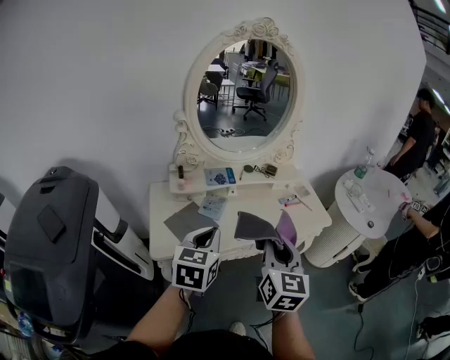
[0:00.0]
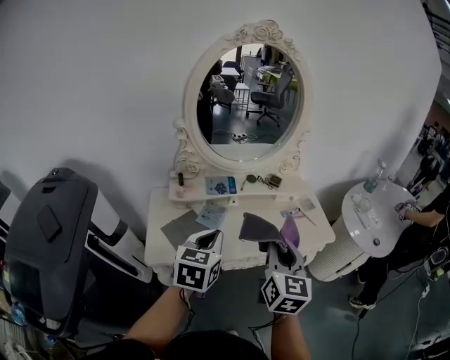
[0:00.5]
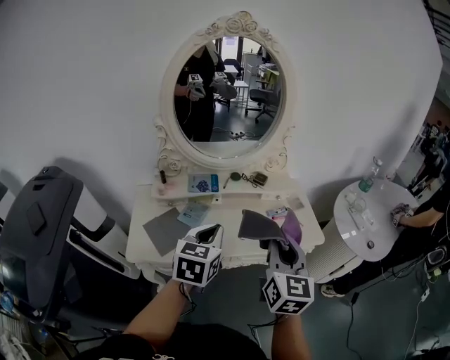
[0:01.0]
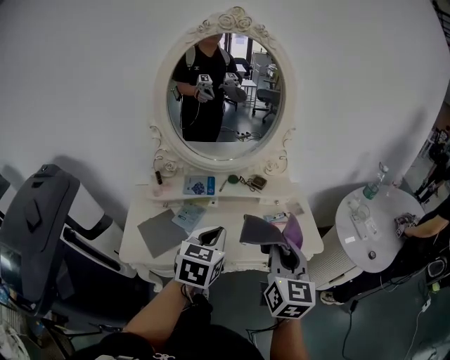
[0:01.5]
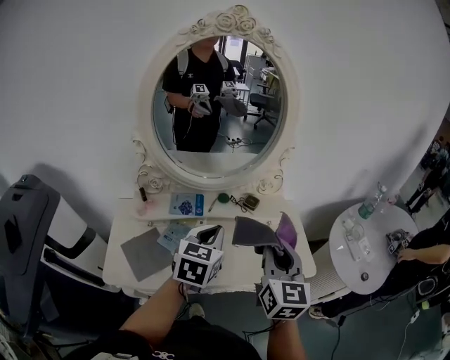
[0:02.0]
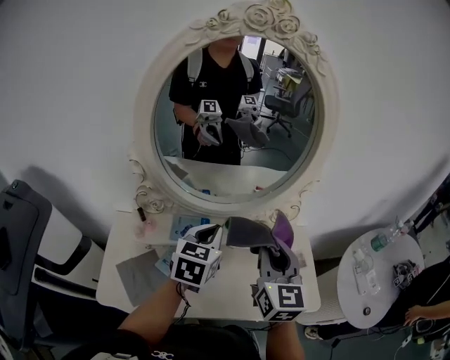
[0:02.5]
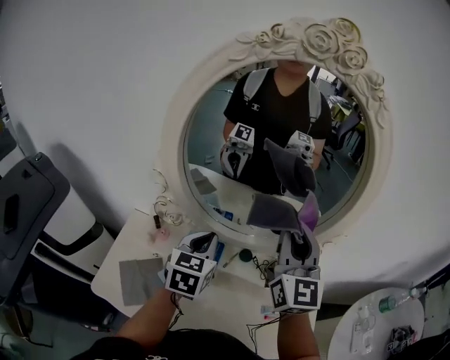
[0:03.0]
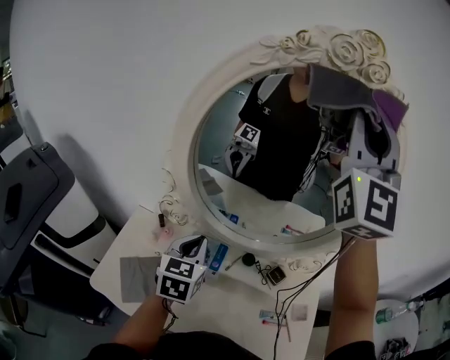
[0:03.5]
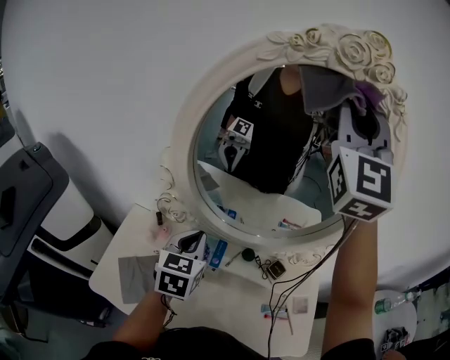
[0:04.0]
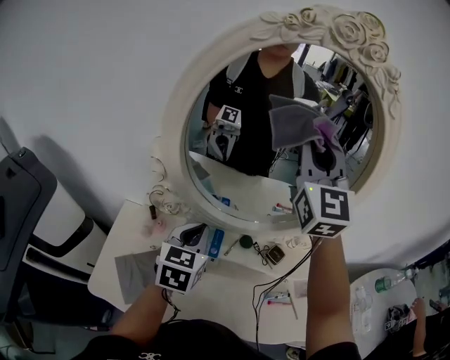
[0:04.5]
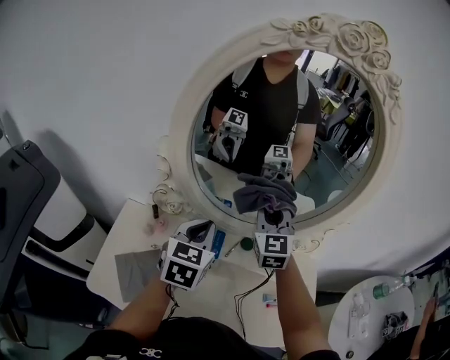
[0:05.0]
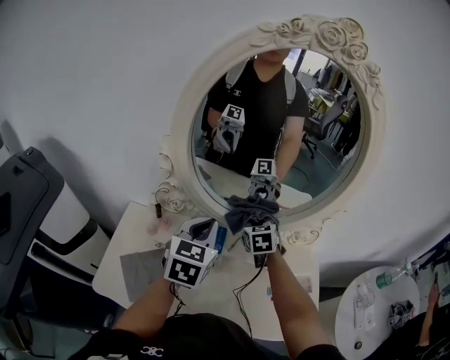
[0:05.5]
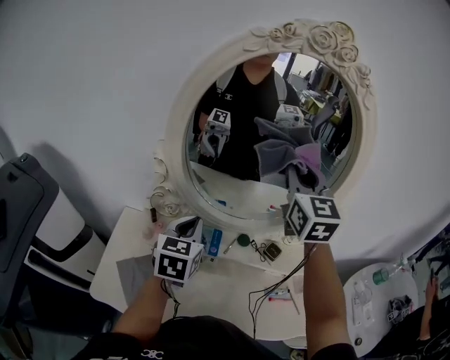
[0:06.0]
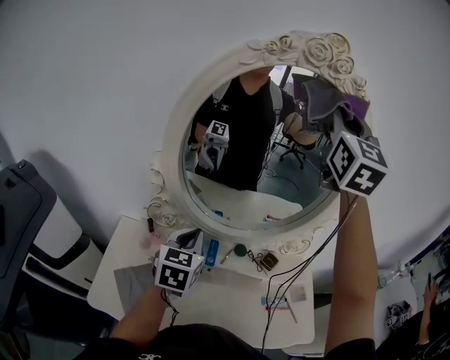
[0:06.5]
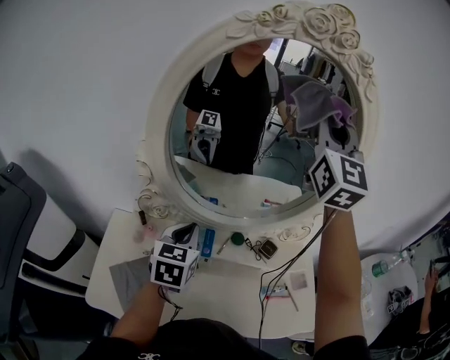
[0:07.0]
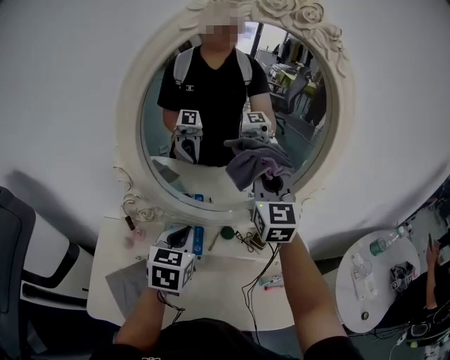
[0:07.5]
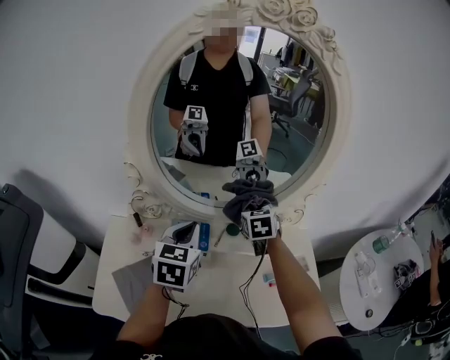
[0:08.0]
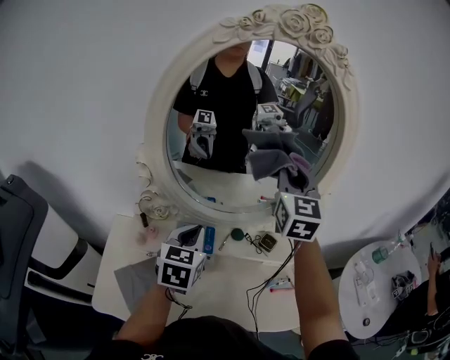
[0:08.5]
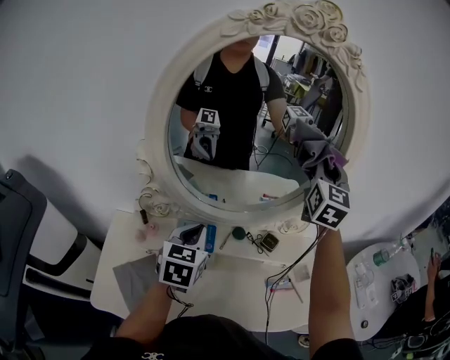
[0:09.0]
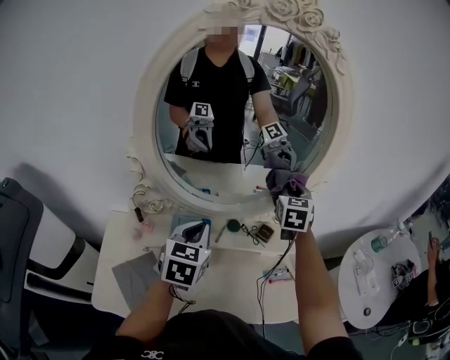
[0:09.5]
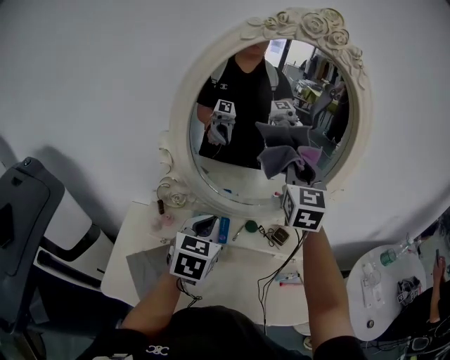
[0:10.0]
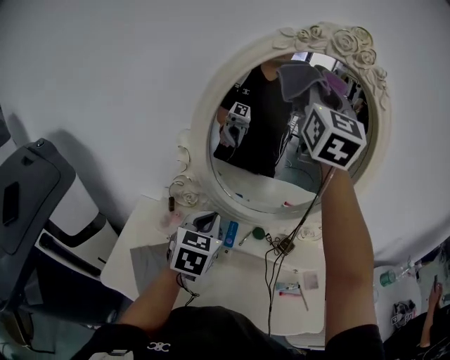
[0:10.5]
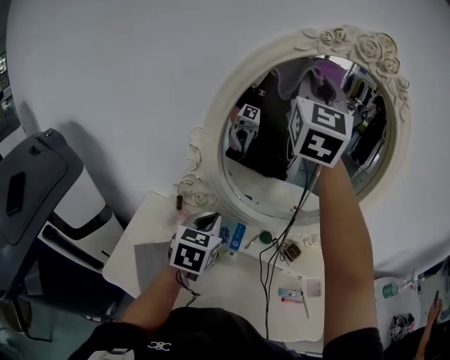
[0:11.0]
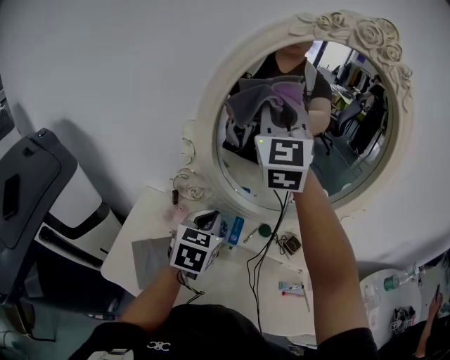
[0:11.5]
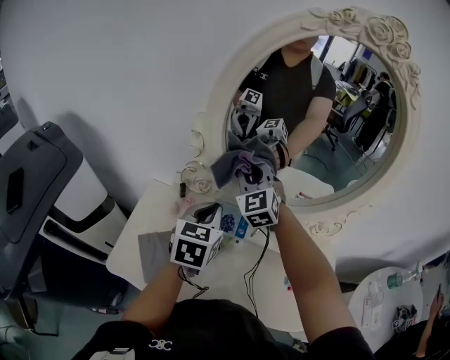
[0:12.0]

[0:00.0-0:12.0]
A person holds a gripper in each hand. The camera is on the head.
0:00.0 to 0:02.0: Both grippers travel together forward and to the right, about 25 cm.
0:02.0 to 0:04.0: The right gripper shifts approximately 35 cm upward, and rotates approximately 50 degrees; the left gripper shifts by roughly 25 cm, and swivels approximately 30 degrees.
0:04.0 to 0:06.0: The right gripper heads downward, covering some 20 cm, and turns by about 30 degrees.
0:06.0 to 0:08.0: The right gripper moves downward, some 30 cm, and angles its fingers downward, by approximately 40 degrees. The left gripper ends up about 5 cm from where it was.
0:08.0 to 0:10.0: The right gripper moves up and down over about 30 cm, changing direction 2 times, and tips its fingers upward by some 30 degrees.
0:10.0 to 0:12.0: The left gripper travels to the left by roughly 5 cm, while the right gripper heads to the left and downward, covering about 25 cm, and rotates about 40 degrees.

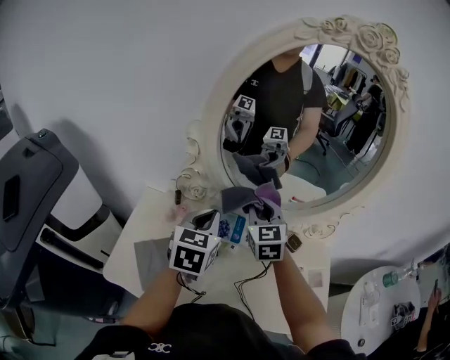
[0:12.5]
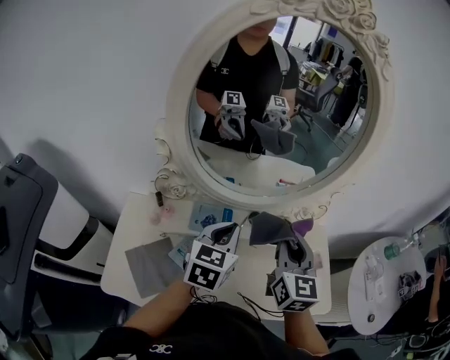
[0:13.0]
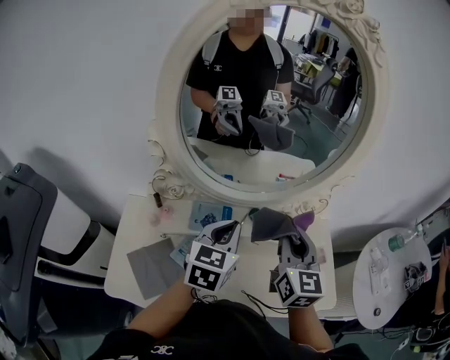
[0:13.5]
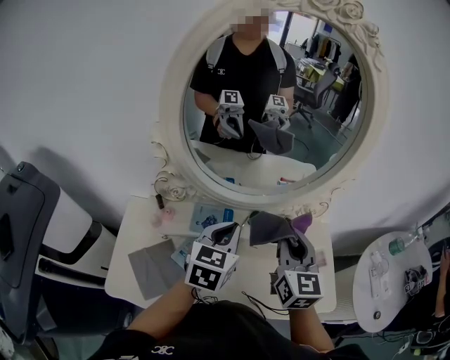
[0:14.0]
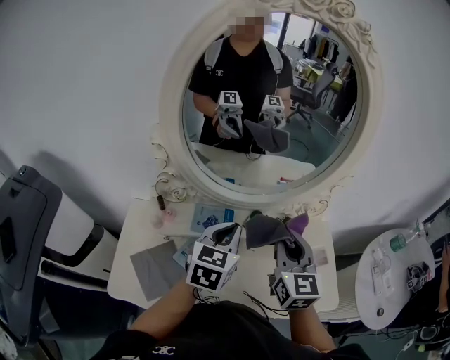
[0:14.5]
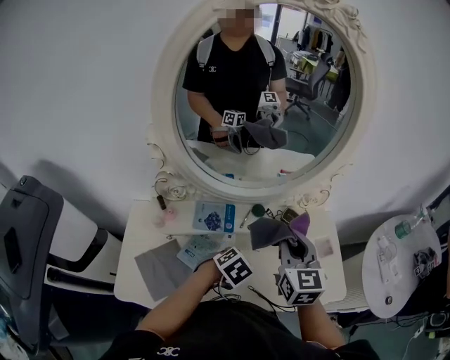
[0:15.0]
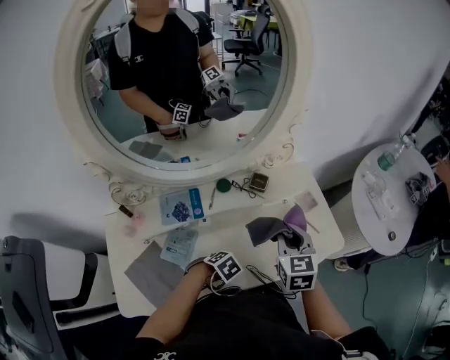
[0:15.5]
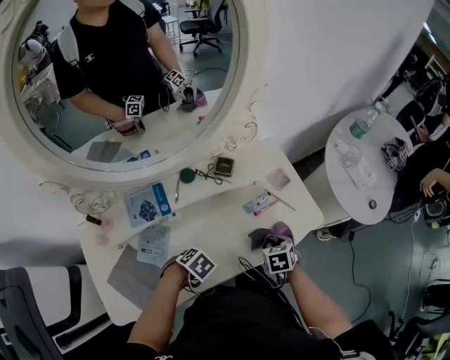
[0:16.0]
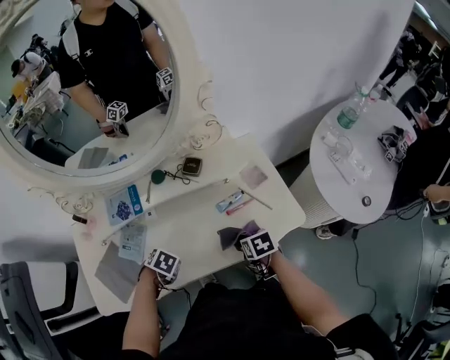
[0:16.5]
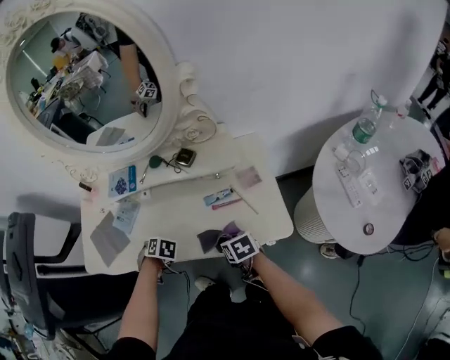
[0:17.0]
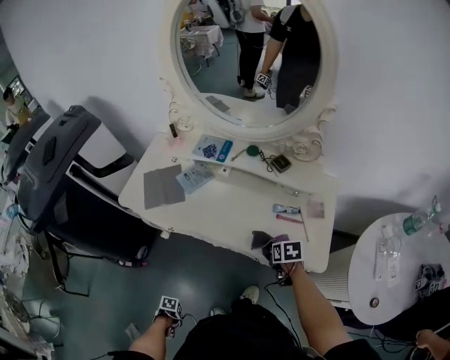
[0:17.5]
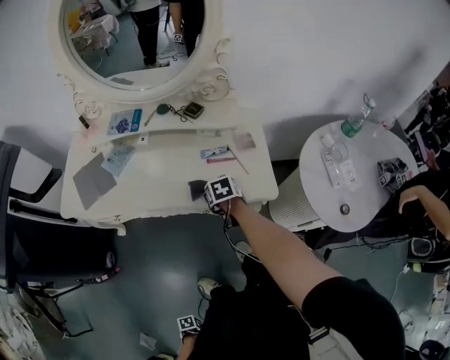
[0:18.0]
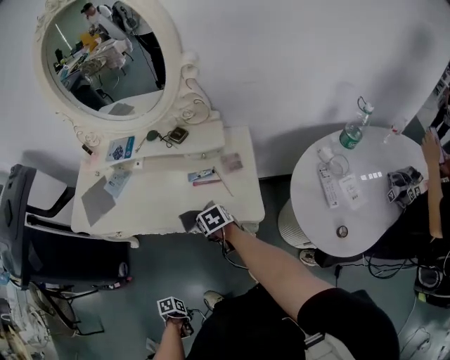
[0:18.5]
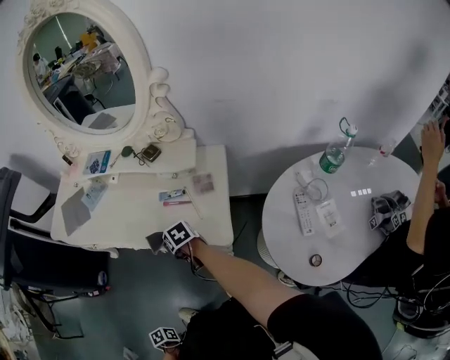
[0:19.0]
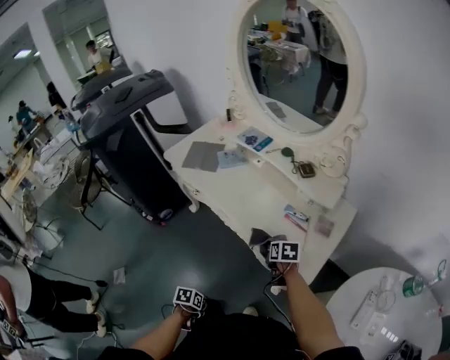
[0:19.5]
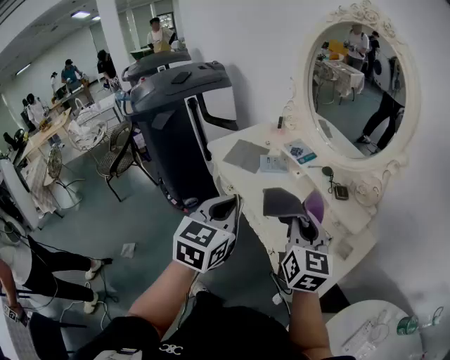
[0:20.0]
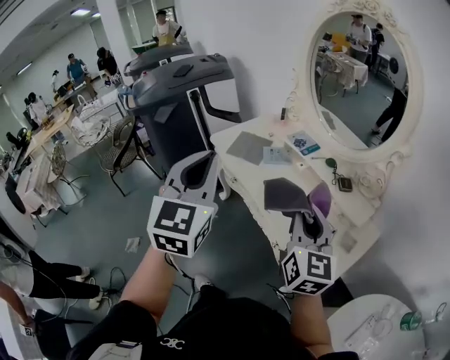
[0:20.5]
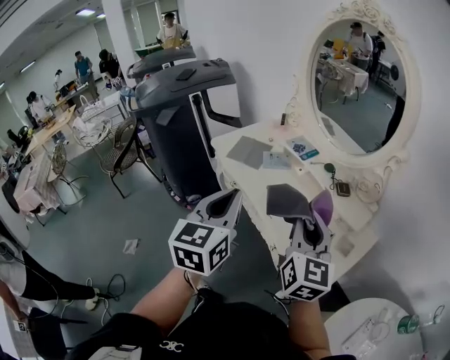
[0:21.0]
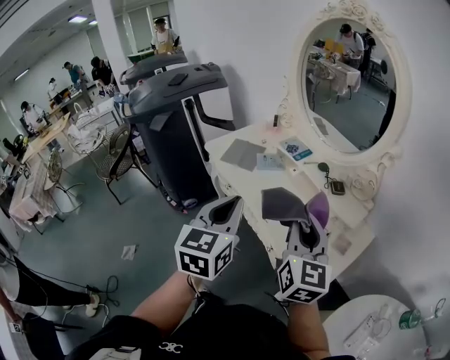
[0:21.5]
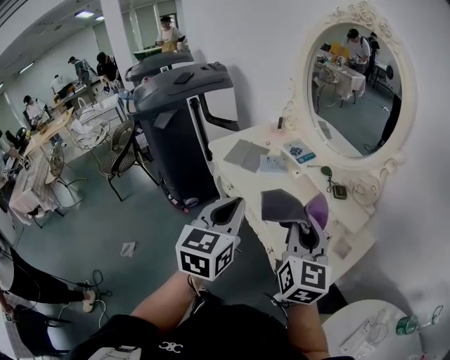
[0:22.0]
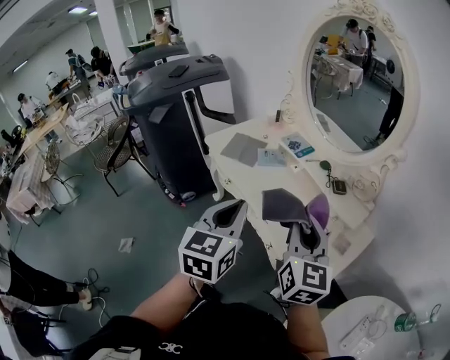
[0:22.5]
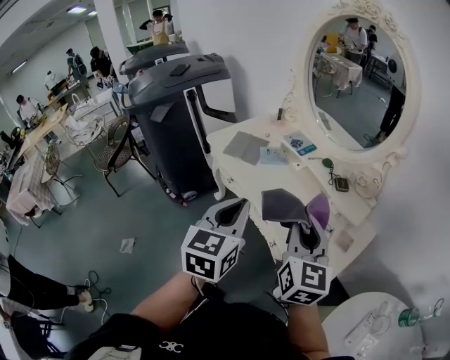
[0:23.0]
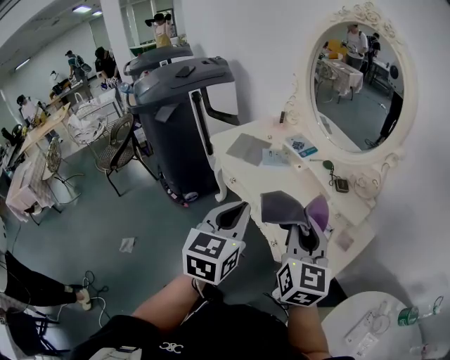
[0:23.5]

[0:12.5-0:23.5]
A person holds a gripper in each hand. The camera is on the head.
0:12.5 to 0:14.5: The left gripper travels to the right by approximately 10 cm; the right gripper is displaced to the right and backward by some 20 cm, and changes its angle by about 20 degrees.
0:14.5 to 0:16.0: The two grippers go approximately 30 cm downward. The left gripper tilts its fingers approximately 60 degrees downward, while the right gripper tips its fingers downward by roughly 60 degrees.
0:16.0 to 0:18.0: The left gripper moves about 70 cm, and rolls counterclockwise, seen from behind, by about 90 degrees, while the right gripper changes its angle by about 30 degrees.
0:18.0 to 0:20.0: The left gripper goes about 60 cm upward, and tips its fingers upward by some 40 degrees, while the right gripper moves upward, approximately 35 cm, and tilts its fingers roughly 60 degrees upward.
0:20.0 to 0:21.5: The left gripper travels upward and back again, approximately 10 cm each way, while the right gripper moves roughly 5 cm.
0:21.5 to 0:23.5: The grippers make only small movements.

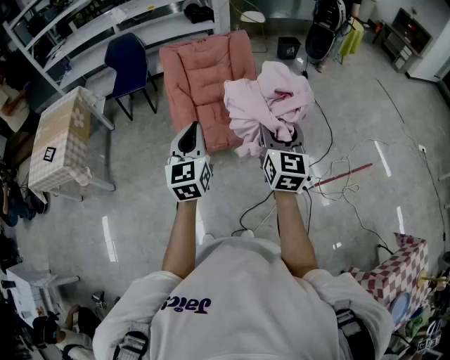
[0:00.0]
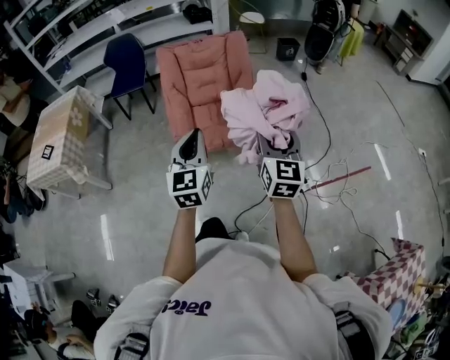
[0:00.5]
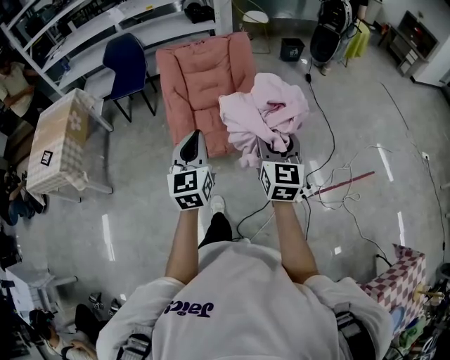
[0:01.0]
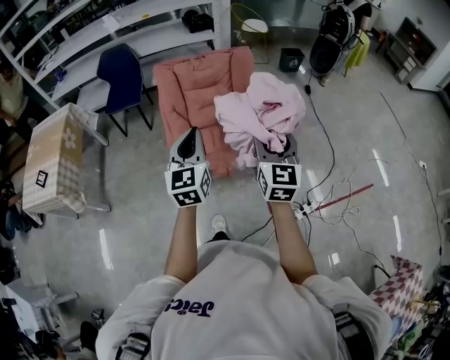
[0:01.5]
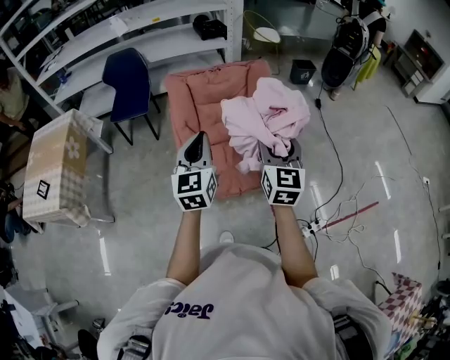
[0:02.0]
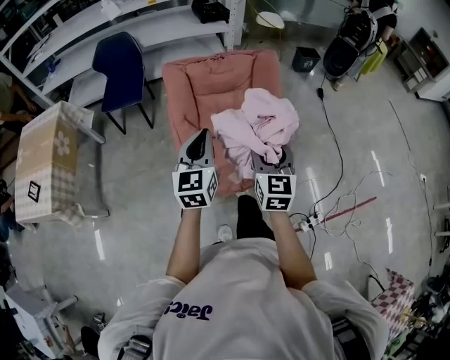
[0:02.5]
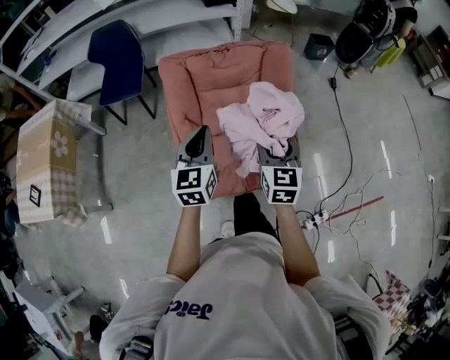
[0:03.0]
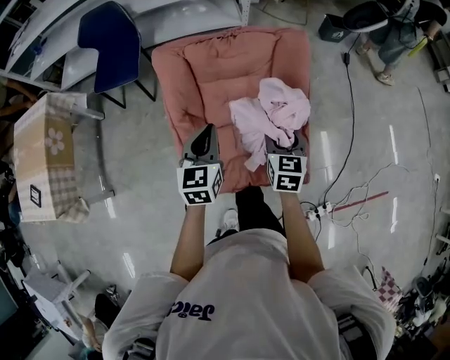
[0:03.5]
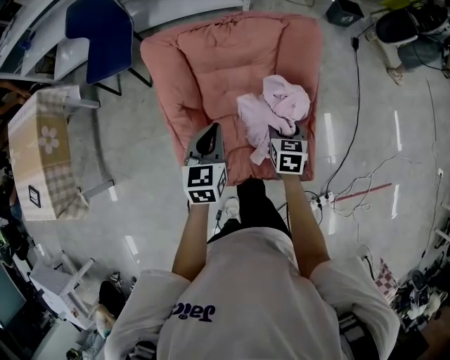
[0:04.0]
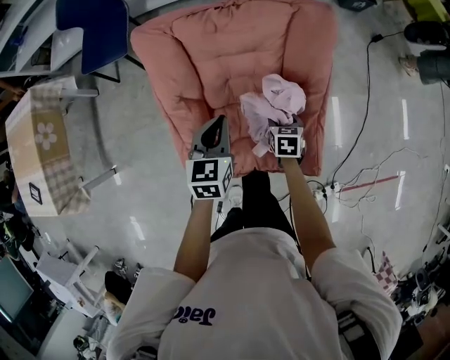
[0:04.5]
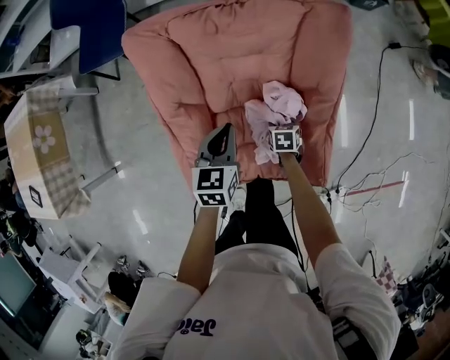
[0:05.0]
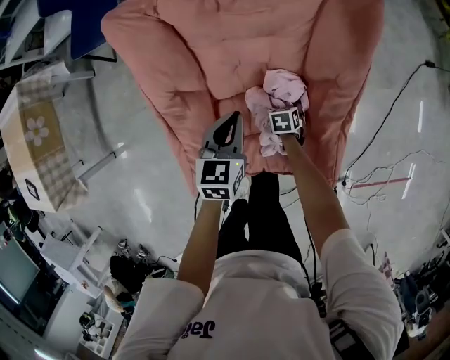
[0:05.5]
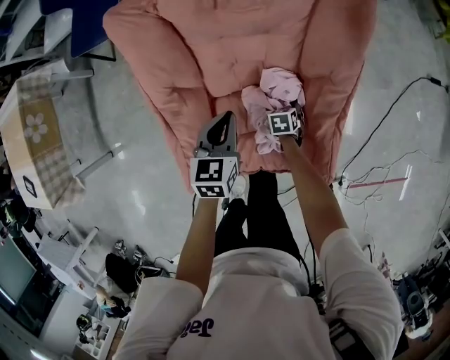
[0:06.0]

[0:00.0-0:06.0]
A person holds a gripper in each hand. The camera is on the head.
0:00.0 to 0:02.0: The two grippers go about 30 cm forward.
0:02.0 to 0:04.0: The left gripper goes approximately 35 cm forward and downward, and swivels some 30 degrees, while the right gripper shifts some 50 cm downward and forward, and points its fingers approximately 40 degrees further downward.
0:04.0 to 0:06.0: The right gripper goes some 30 cm downward, and changes its angle by some 30 degrees. The left gripper shifts about 15 cm downward.
